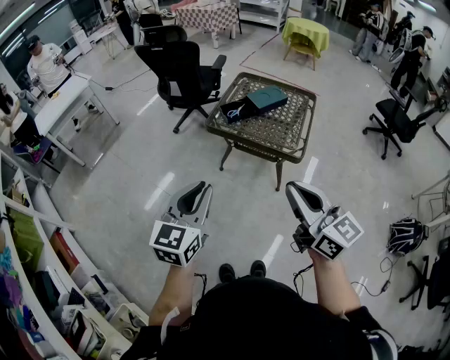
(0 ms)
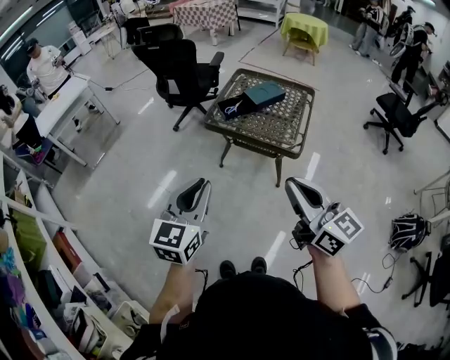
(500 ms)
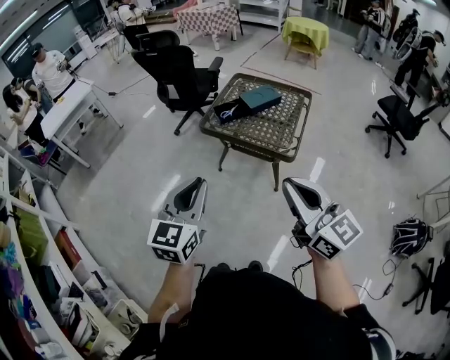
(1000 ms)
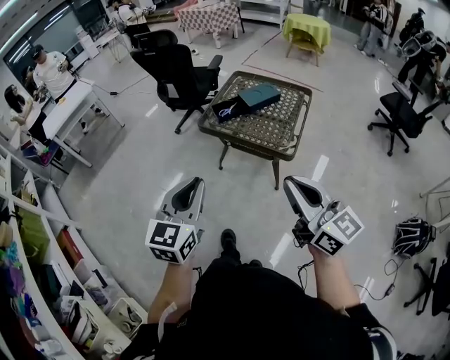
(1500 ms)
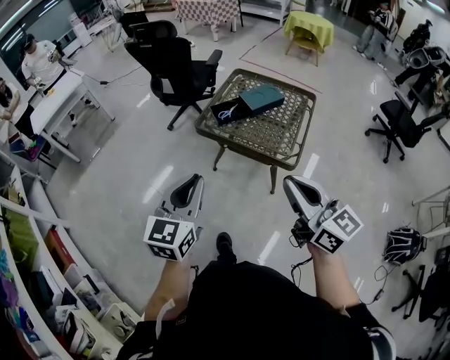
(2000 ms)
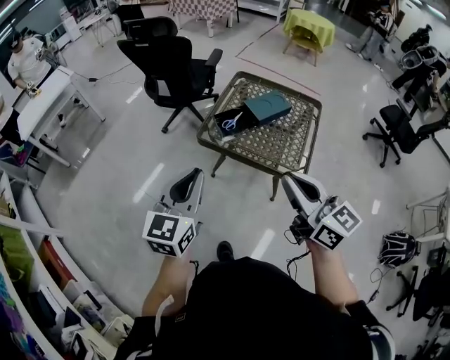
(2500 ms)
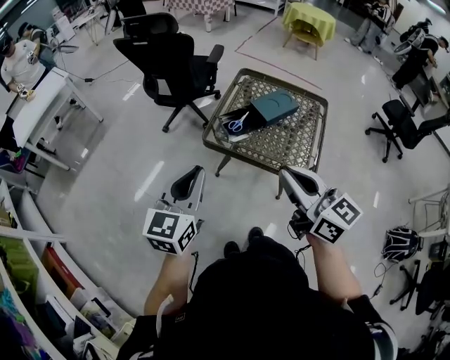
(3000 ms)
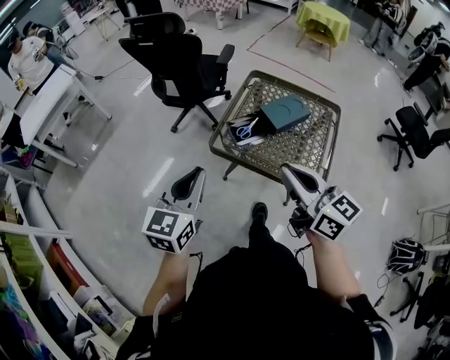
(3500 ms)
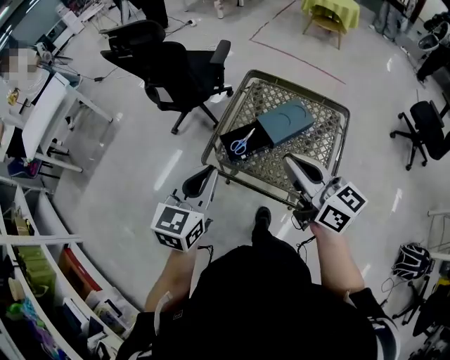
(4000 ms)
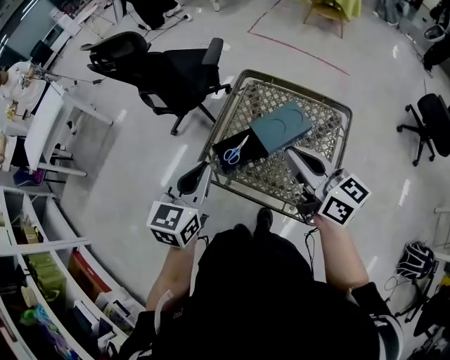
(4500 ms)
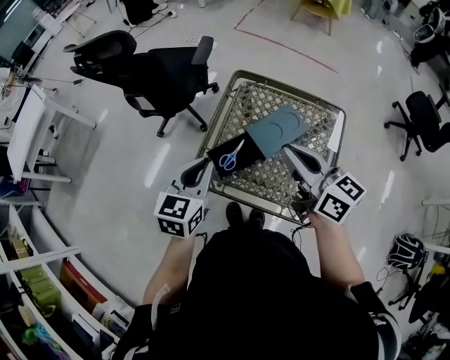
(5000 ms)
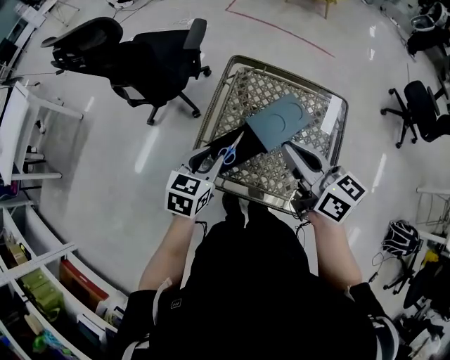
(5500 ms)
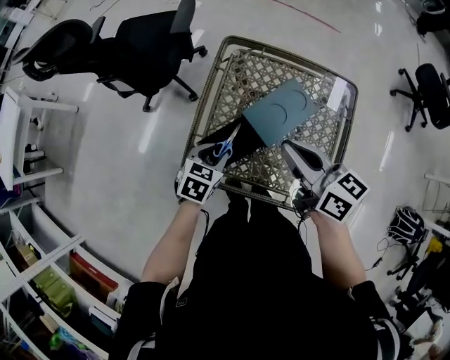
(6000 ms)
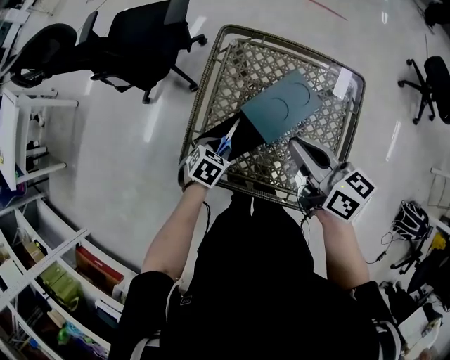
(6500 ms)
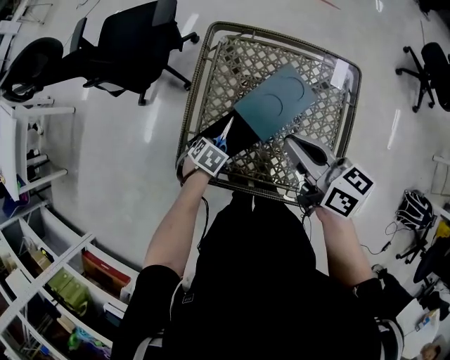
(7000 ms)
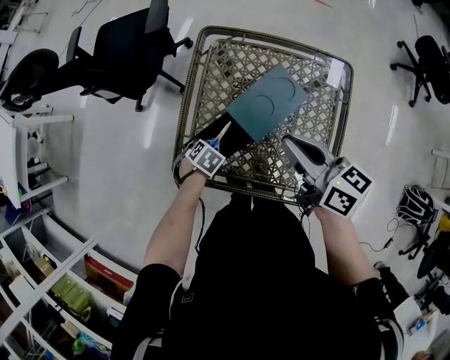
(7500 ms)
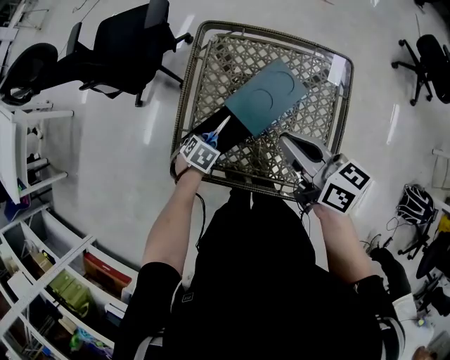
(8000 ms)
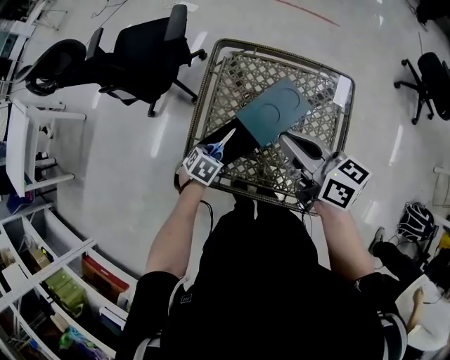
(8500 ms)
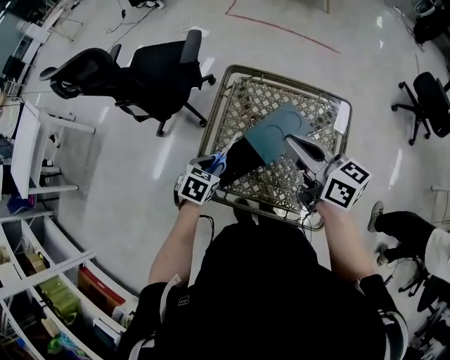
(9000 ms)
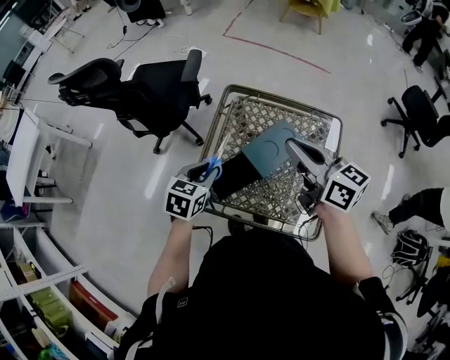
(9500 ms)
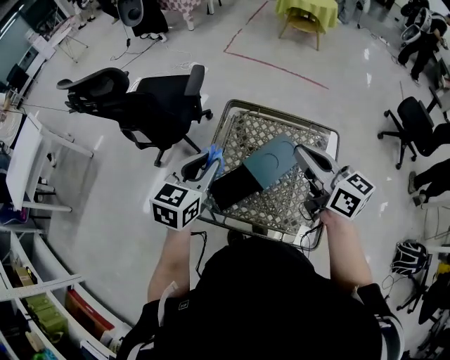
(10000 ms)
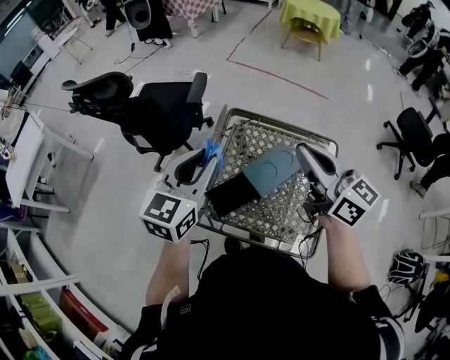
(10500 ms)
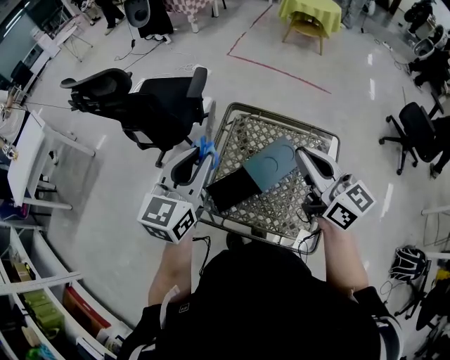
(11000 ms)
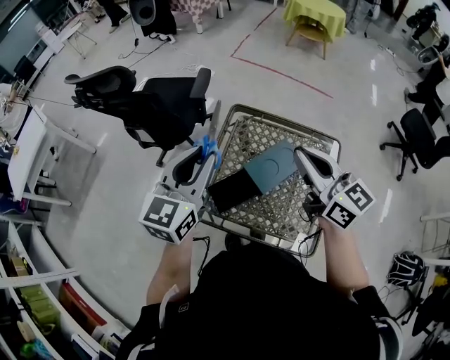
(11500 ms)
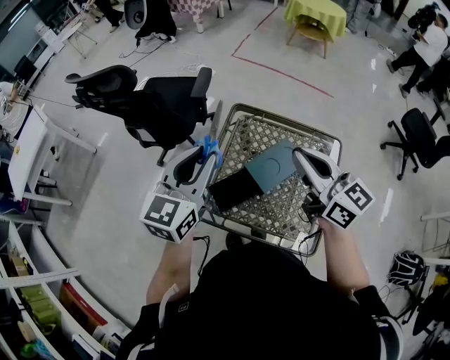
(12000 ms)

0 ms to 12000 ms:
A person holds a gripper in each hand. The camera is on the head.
0 ms to 2000 ms: The grippers both shift forward and to the right by roughly 10 cm.
2000 ms to 4000 ms: The two grippers go some 35 cm forward.
4000 ms to 6000 ms: The right gripper heads forward and downward, covering about 20 cm, while the left gripper heads downward and forward, covering approximately 30 cm, angles its fingers downward, by some 30 degrees, and opens up.
6000 ms to 8000 ms: The right gripper shifts by about 5 cm; the left gripper travels downward by approximately 15 cm, and swivels approximately 30 degrees.
8000 ms to 10000 ms: The left gripper goes about 35 cm upward, and tilts its fingers roughly 50 degrees upward. The right gripper moves upward, some 15 cm.
10000 ms to 12000 ms: The left gripper heads upward, covering roughly 10 cm.

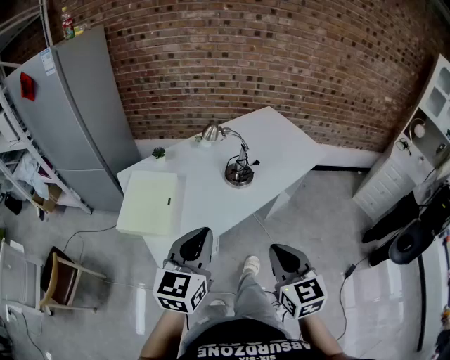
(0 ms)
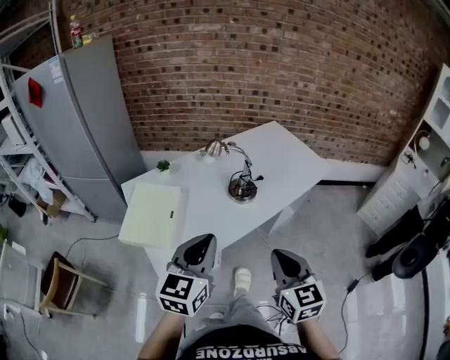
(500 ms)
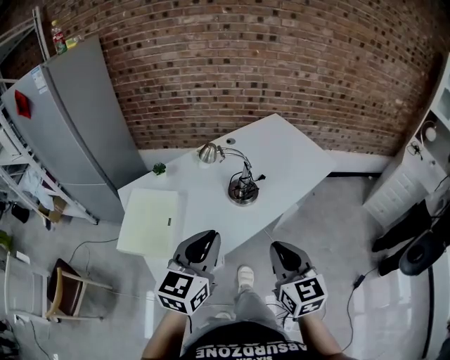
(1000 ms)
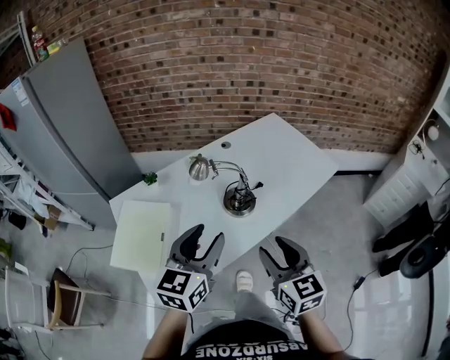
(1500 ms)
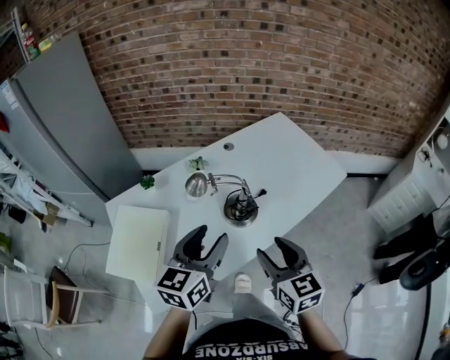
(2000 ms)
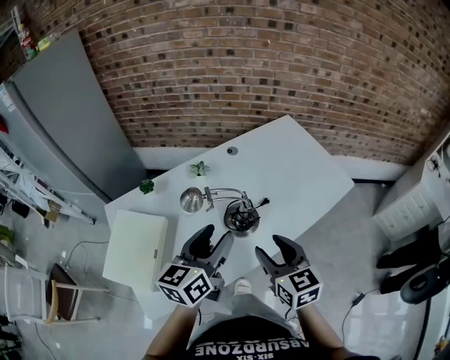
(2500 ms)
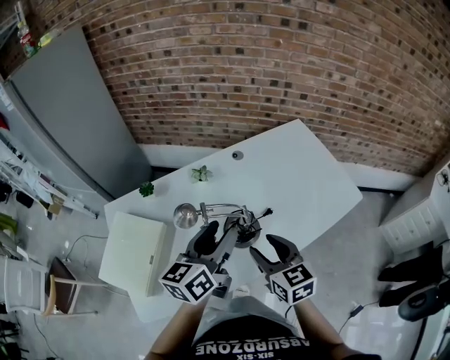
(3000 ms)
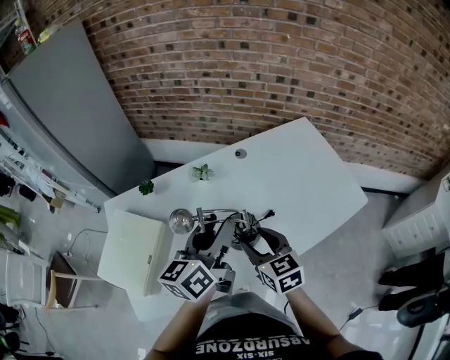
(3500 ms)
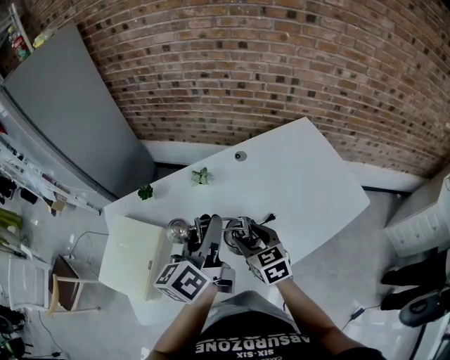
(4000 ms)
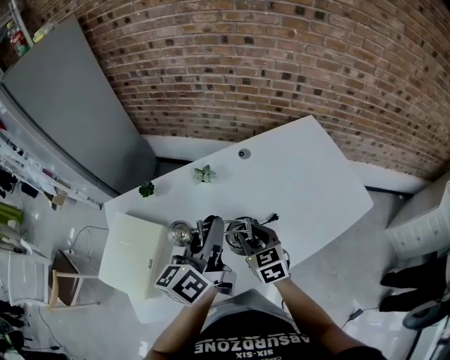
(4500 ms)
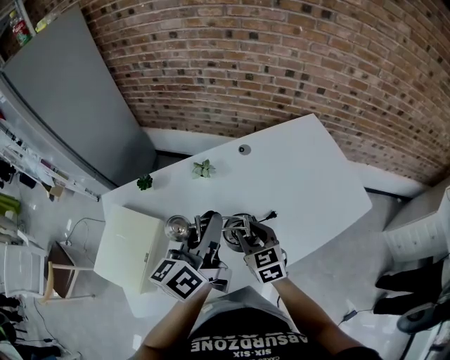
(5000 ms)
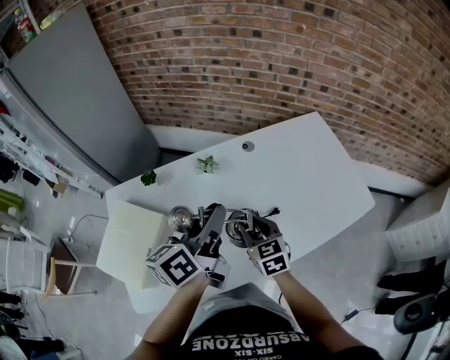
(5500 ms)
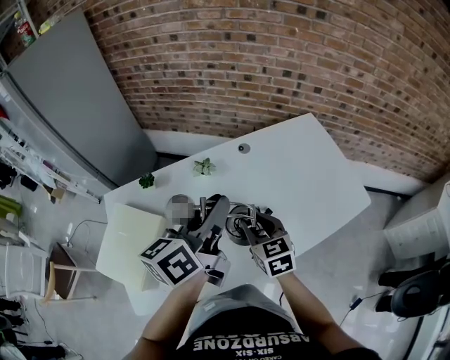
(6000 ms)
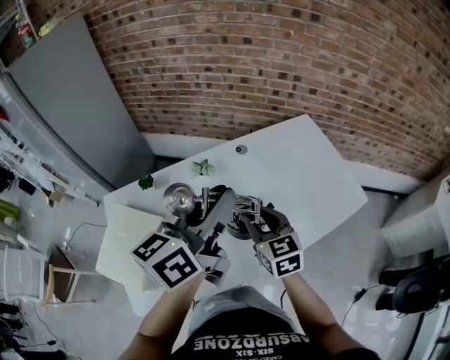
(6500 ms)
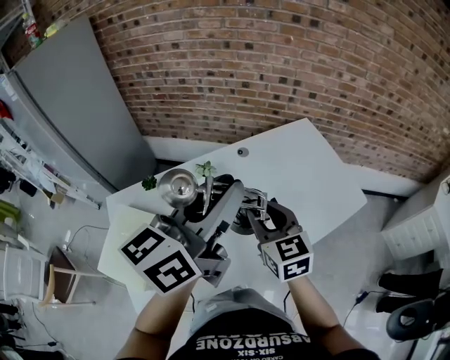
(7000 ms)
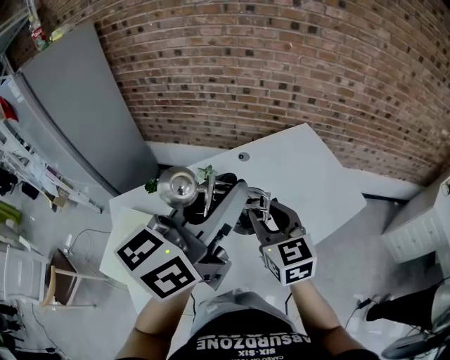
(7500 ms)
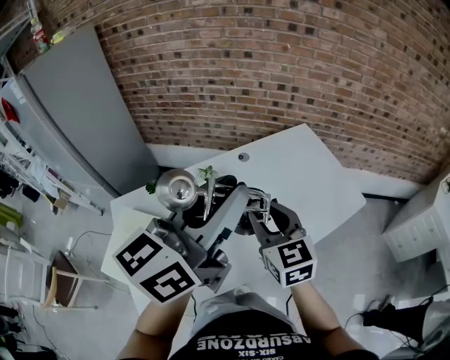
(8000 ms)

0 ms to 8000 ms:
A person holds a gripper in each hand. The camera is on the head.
0 ms to 2000 ms: Both grippers move forward, approximately 25 cm. The right gripper opens. The left gripper opens.
2000 ms to 4000 ms: The left gripper is displaced forward by roughly 20 cm, and rotates approximately 40 degrees, while the right gripper moves forward and downward, roughly 25 cm, and swivels some 20 degrees.
4000 ms to 6000 ms: The left gripper closes, while the right gripper closes.
6000 ms to 8000 ms: The right gripper travels upward by approximately 15 cm, while the left gripper goes about 20 cm upward and backward, and changes its angle by roughly 20 degrees.

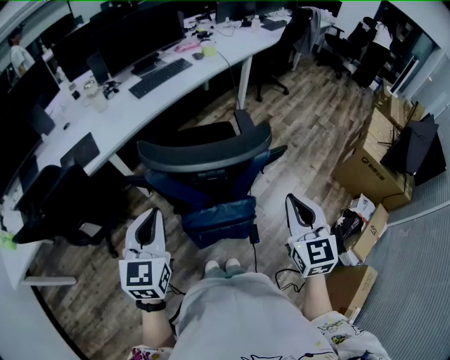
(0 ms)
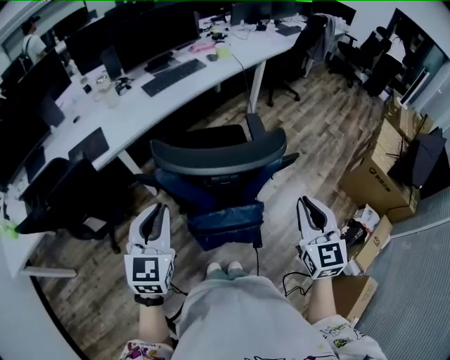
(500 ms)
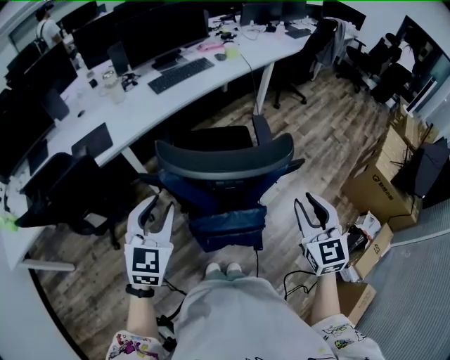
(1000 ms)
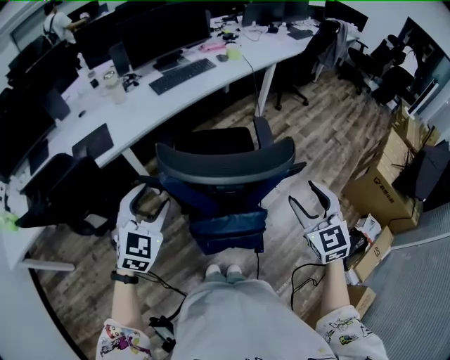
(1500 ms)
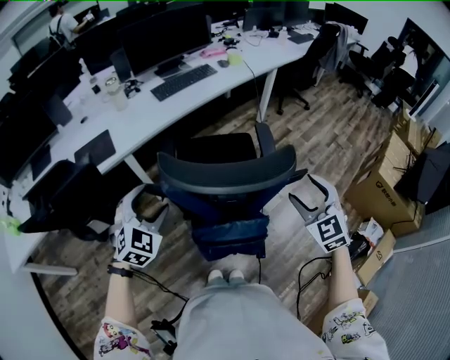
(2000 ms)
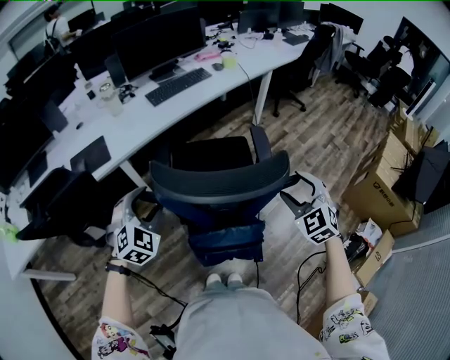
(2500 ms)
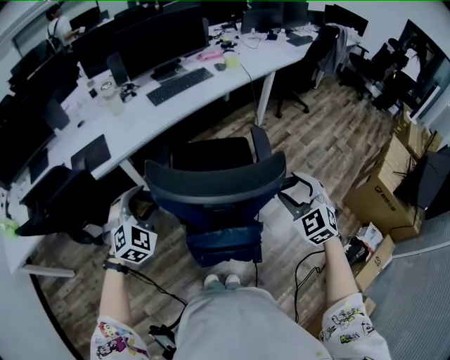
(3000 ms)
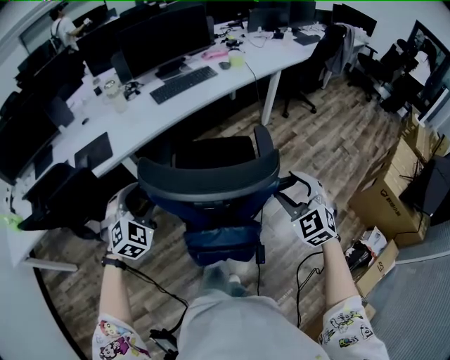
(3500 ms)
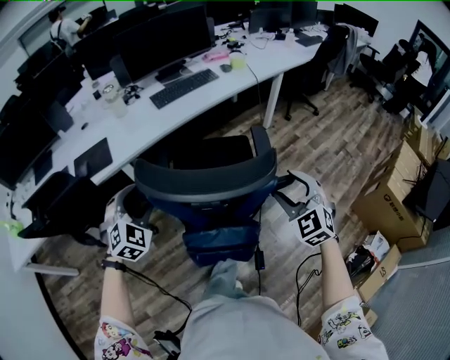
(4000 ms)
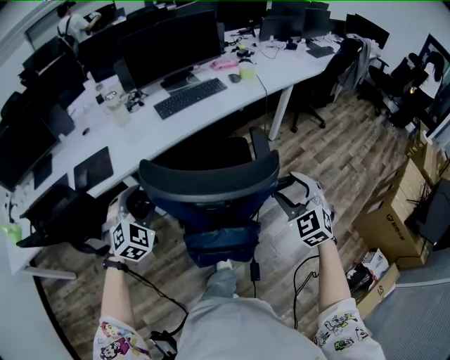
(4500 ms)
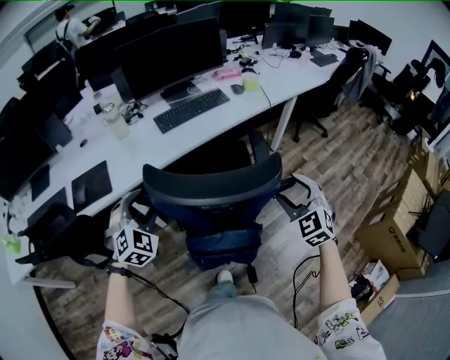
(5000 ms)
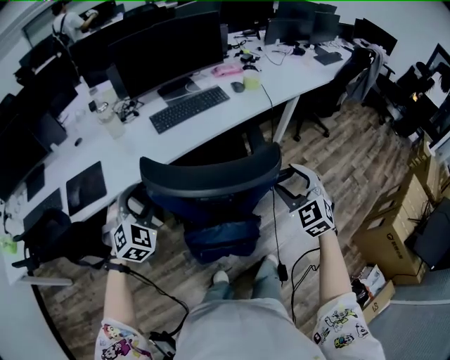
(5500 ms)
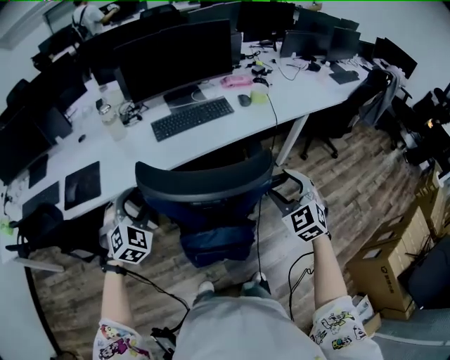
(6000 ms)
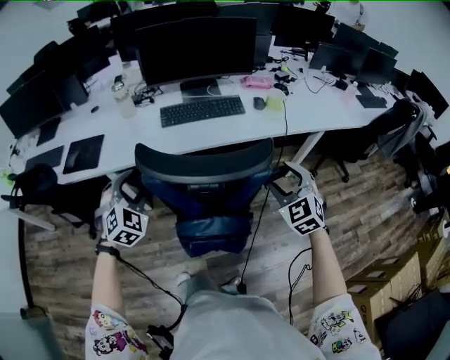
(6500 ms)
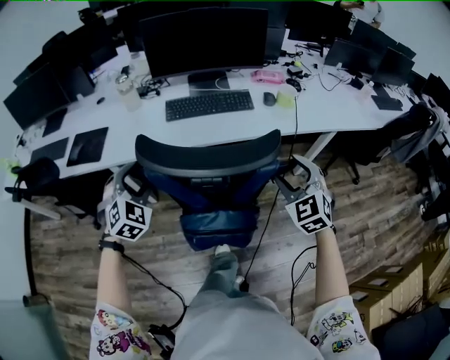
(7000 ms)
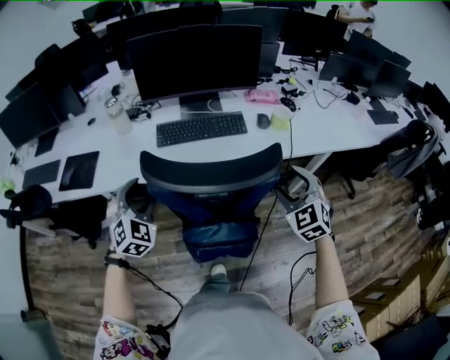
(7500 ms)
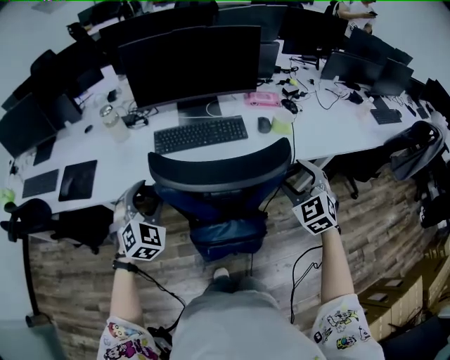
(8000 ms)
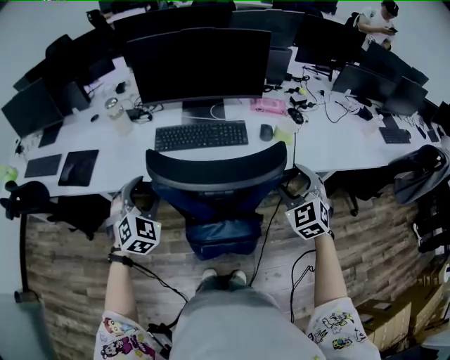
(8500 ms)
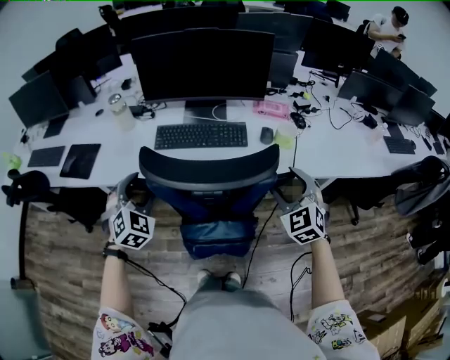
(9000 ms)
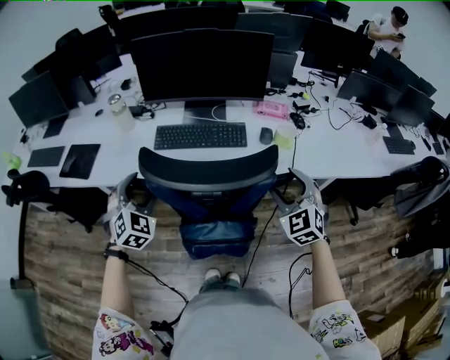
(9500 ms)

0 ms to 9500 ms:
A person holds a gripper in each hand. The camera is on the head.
0 ms to 2000 ms: The left gripper heads forward and downward, covering roughly 10 cm, rotates about 40 degrees, and opens its fingers. Meanwhile the right gripper goes about 10 cm forward, changes its angle by approximately 30 degrees, and opens its fingers.
2000 ms to 4000 ms: The two grippers go some 10 cm forward.
4000 ms to 5500 ms: Both grippers travel together forward, roughly 20 cm.
5500 ms to 7500 ms: The left gripper travels to the right and forward by approximately 15 cm, and changes its angle by some 20 degrees. Meanwhile the right gripper heads forward and to the right, covering some 25 cm.
7500 ms to 9500 ms: The left gripper shifts approximately 5 cm to the right; the right gripper moves forward and to the right, approximately 10 cm.
